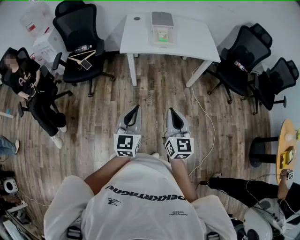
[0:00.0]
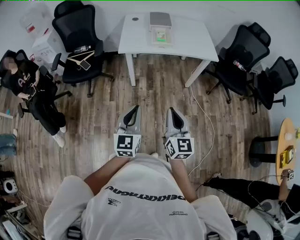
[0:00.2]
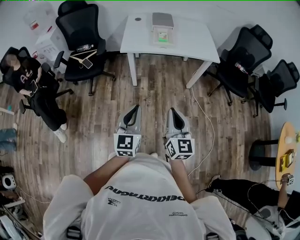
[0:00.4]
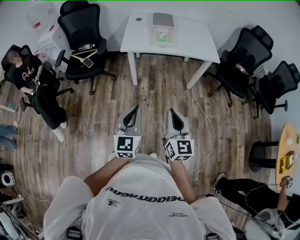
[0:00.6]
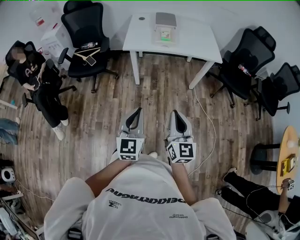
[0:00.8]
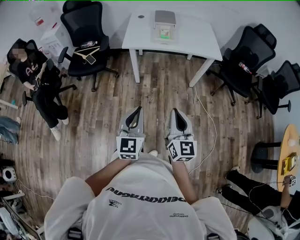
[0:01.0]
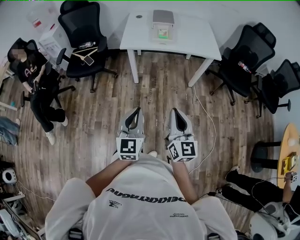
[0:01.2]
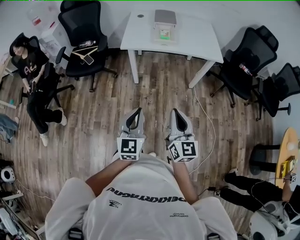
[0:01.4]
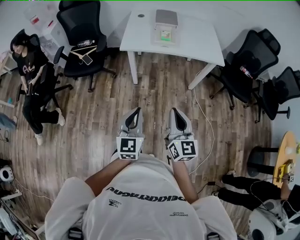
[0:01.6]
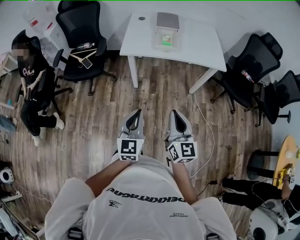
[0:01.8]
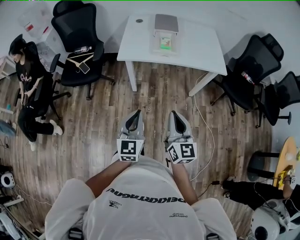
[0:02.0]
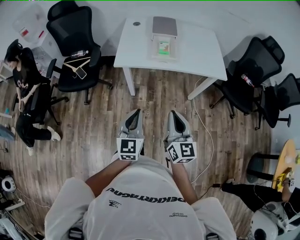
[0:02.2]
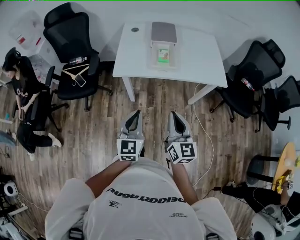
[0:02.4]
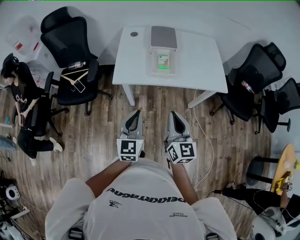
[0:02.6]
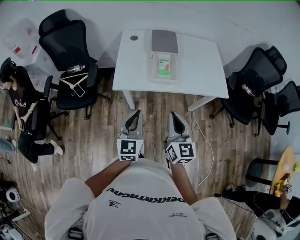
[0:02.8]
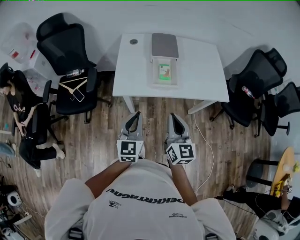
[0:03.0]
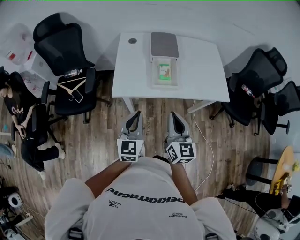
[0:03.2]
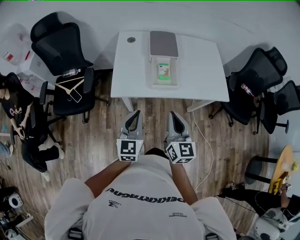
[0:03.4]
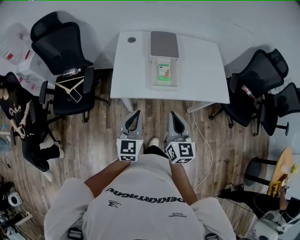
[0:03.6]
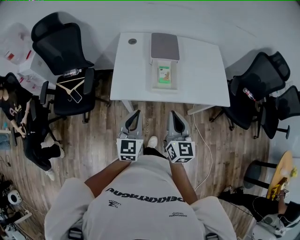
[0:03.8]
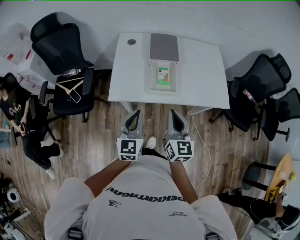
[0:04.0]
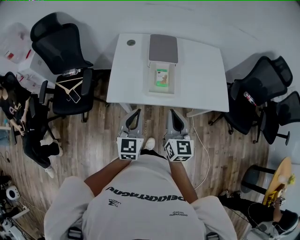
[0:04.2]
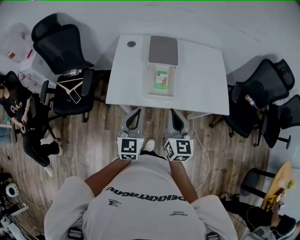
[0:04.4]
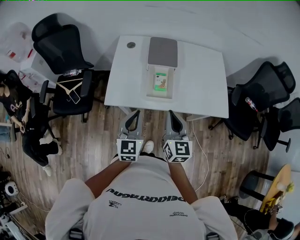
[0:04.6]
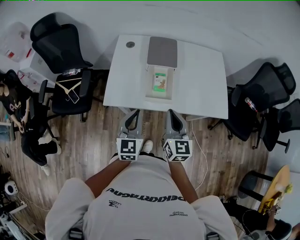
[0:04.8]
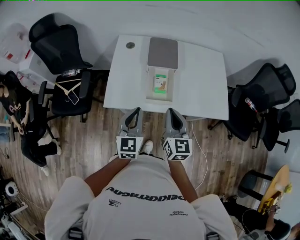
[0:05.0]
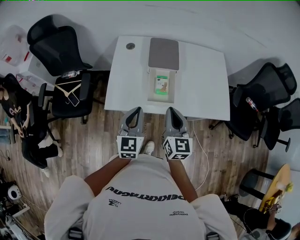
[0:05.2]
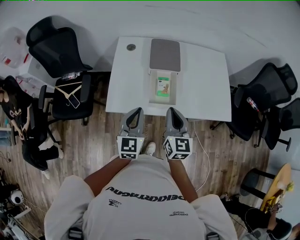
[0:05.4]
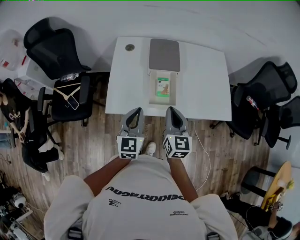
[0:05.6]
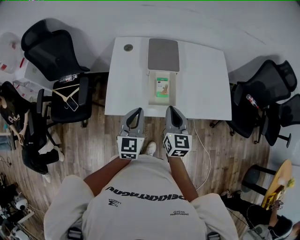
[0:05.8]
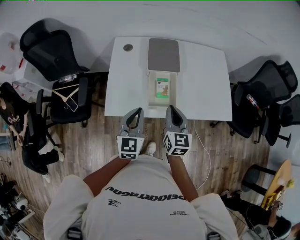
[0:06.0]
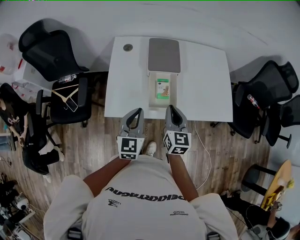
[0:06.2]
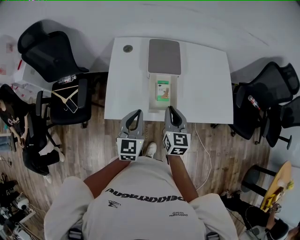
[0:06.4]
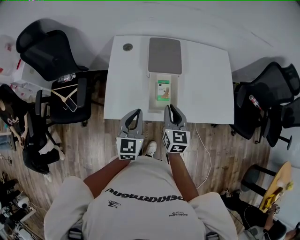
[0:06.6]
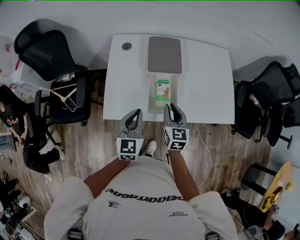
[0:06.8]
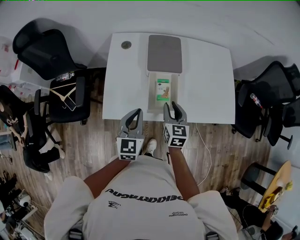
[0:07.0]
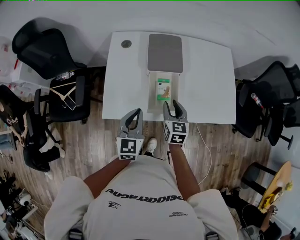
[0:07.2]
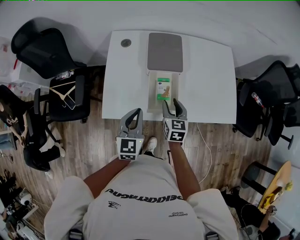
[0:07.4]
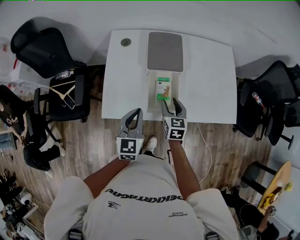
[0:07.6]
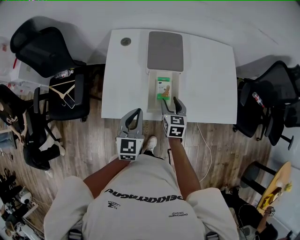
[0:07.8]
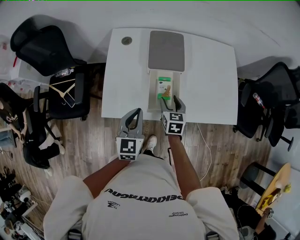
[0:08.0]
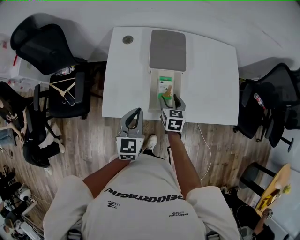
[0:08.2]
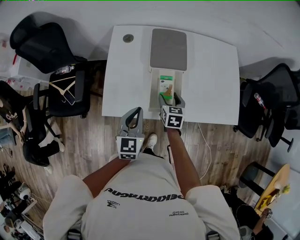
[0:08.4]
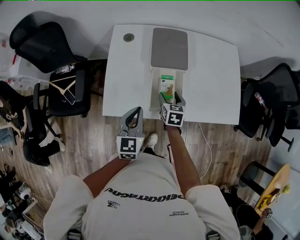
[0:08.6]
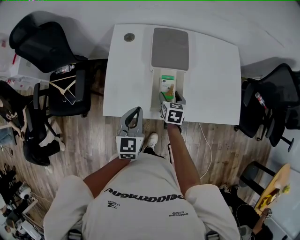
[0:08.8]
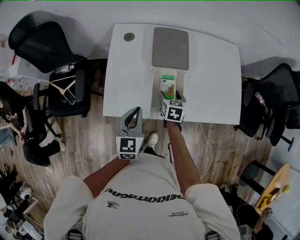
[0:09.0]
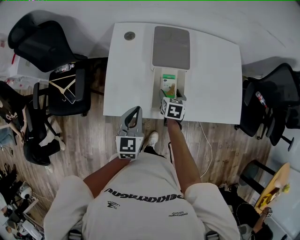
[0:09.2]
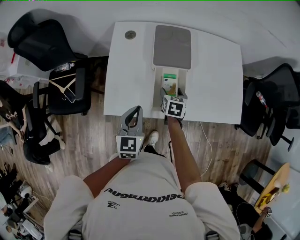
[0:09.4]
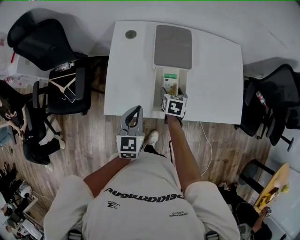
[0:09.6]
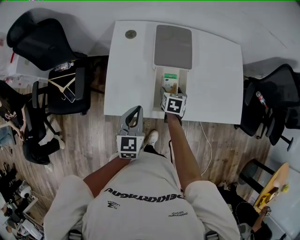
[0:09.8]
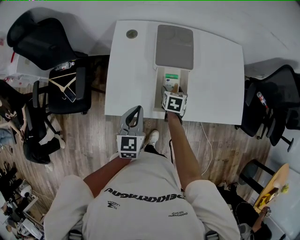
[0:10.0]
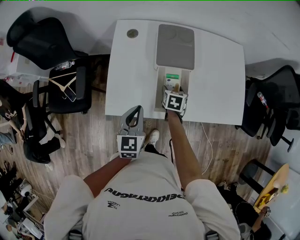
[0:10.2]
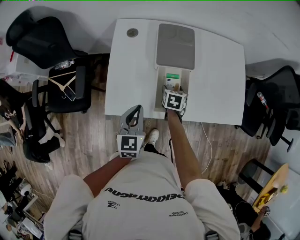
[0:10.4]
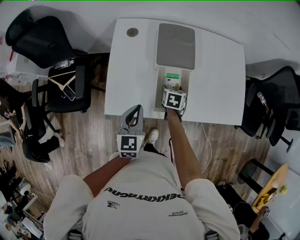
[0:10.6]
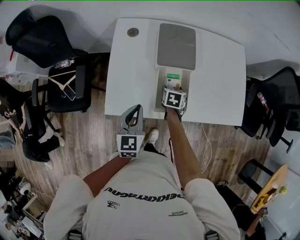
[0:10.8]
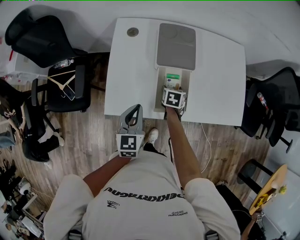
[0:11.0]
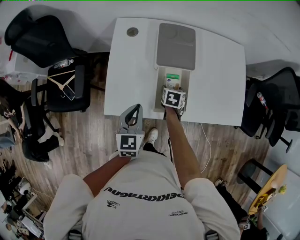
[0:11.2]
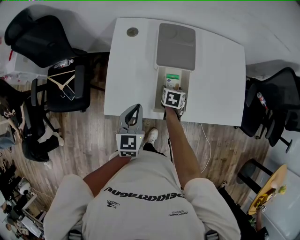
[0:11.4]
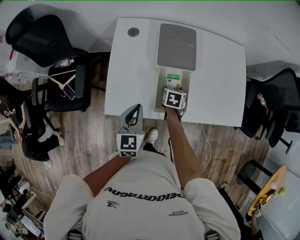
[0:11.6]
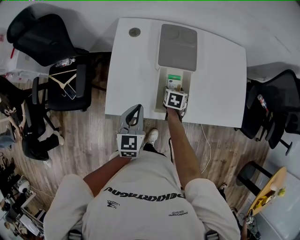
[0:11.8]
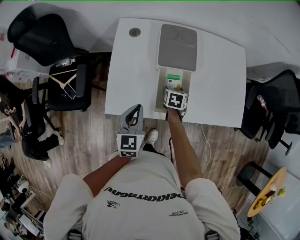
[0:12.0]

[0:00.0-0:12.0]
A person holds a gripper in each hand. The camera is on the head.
0:00.0 to 0:01.6: The left gripper shifts by approximately 5 cm, while the right gripper travels to the right by approximately 5 cm.
0:01.6 to 0:03.0: Both grippers travel together forward, roughly 35 cm.
0:03.0 to 0:04.4: The two grippers go some 10 cm forward.
0:04.4 to 0:06.0: Both grippers travel together forward, approximately 10 cm.
0:06.0 to 0:07.6: The right gripper shifts about 15 cm downward and forward, and opens up, while the left gripper moves about 5 cm.
0:07.6 to 0:09.0: The right gripper moves downward, approximately 5 cm, and opens.
0:09.0 to 0:10.4: There are only small adjustments of the grippers.
0:10.4 to 0:12.0: The grippers stay close to where they were, moving slightly.

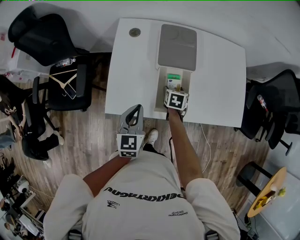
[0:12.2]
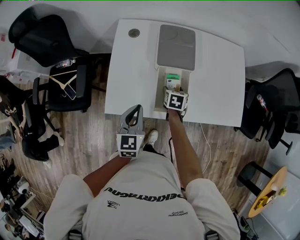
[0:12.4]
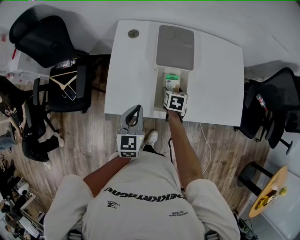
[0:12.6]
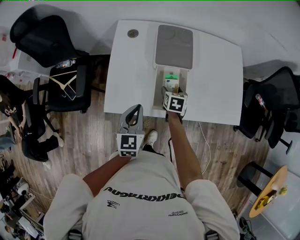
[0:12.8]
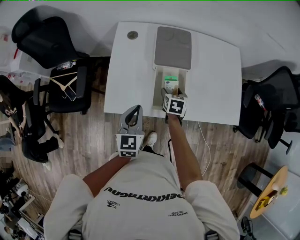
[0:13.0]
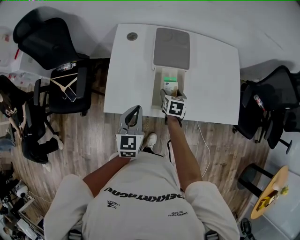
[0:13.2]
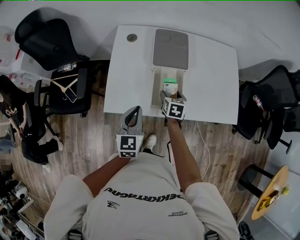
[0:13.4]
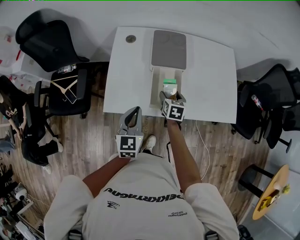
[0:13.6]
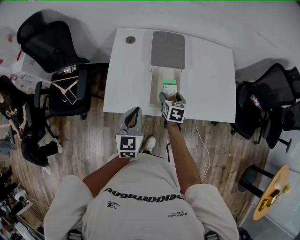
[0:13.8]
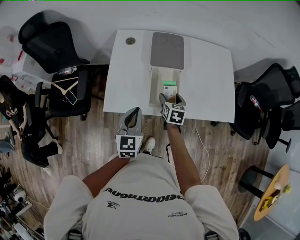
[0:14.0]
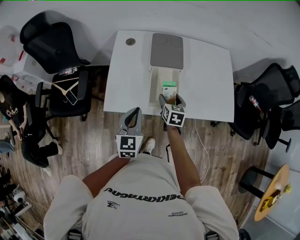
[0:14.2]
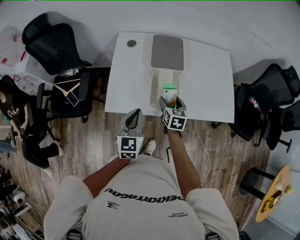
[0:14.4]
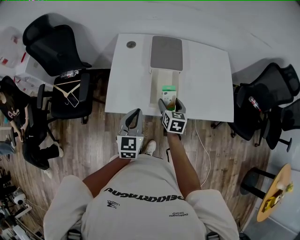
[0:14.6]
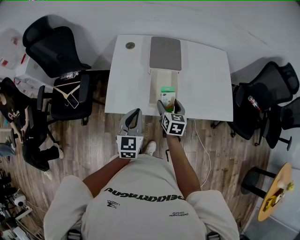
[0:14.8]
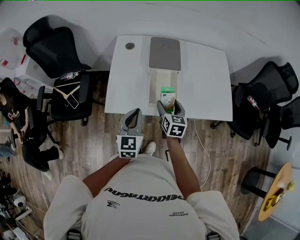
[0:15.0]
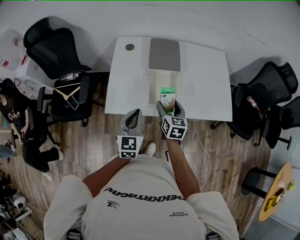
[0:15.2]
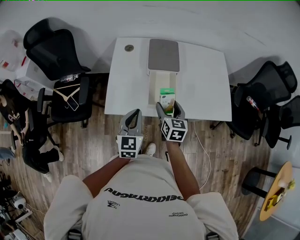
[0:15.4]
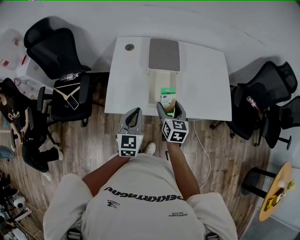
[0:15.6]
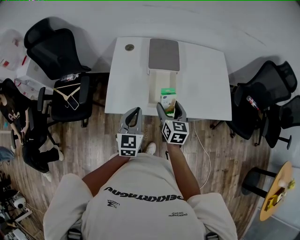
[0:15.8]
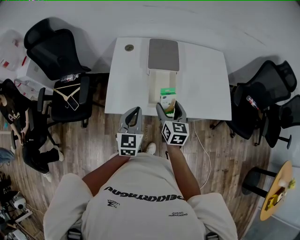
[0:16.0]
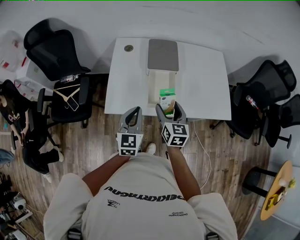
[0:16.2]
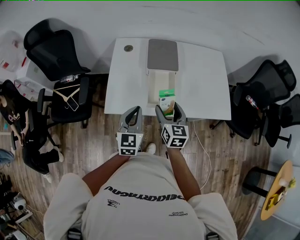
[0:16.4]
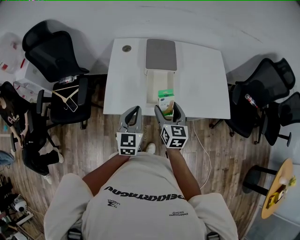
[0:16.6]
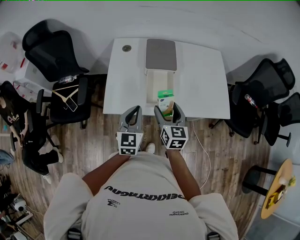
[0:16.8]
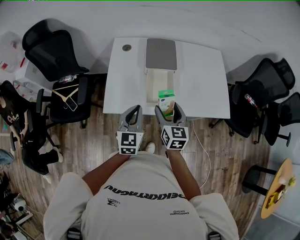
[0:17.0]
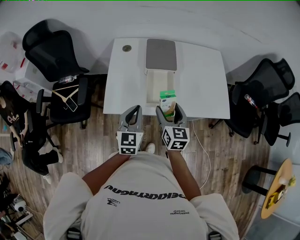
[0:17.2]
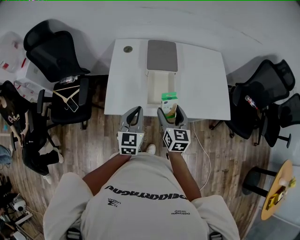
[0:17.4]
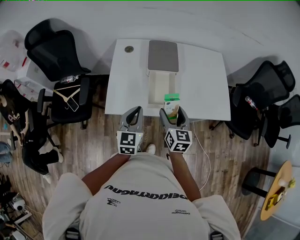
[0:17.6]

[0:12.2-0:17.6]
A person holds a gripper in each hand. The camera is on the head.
0:12.2 to 0:13.6: The left gripper shifts by roughly 5 cm. Meanwhile the right gripper goes some 5 cm upward.
0:13.6 to 0:15.0: The right gripper moves upward and backward, roughly 10 cm.
0:15.0 to 0:16.2: The right gripper moves upward, about 5 cm.
0:16.2 to 0:17.6: There are only small adjustments of the grippers.

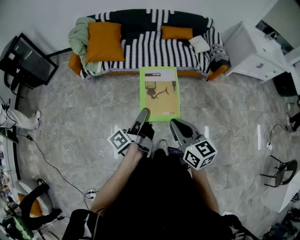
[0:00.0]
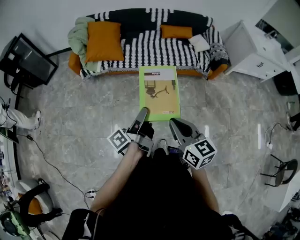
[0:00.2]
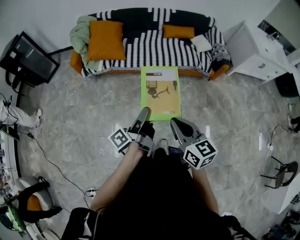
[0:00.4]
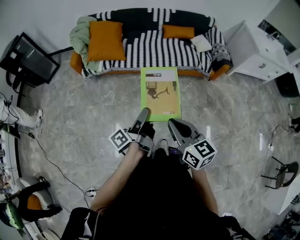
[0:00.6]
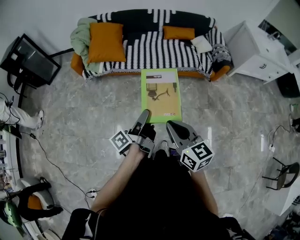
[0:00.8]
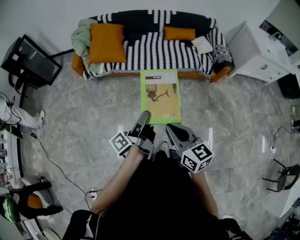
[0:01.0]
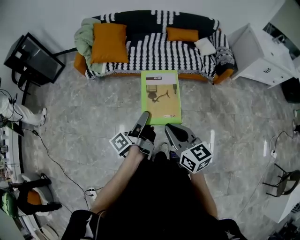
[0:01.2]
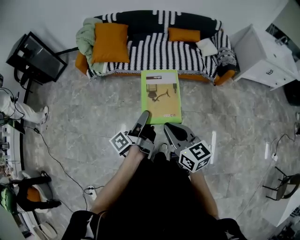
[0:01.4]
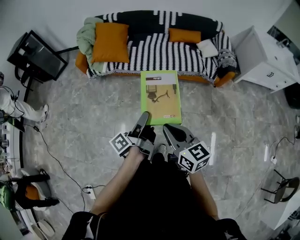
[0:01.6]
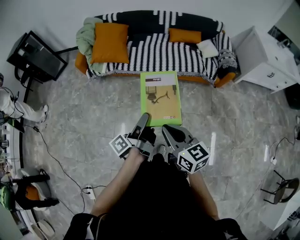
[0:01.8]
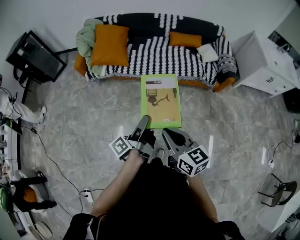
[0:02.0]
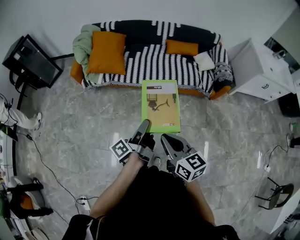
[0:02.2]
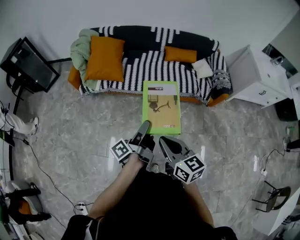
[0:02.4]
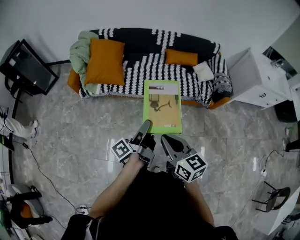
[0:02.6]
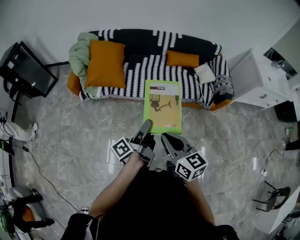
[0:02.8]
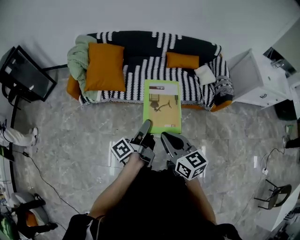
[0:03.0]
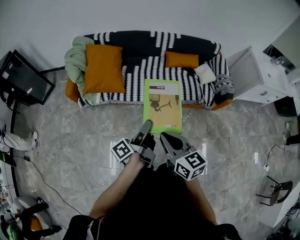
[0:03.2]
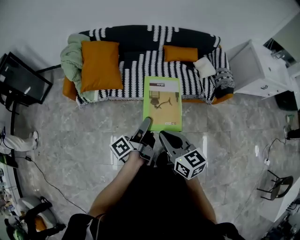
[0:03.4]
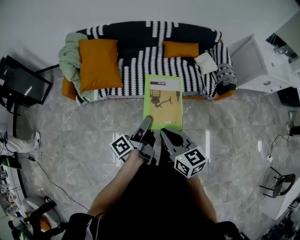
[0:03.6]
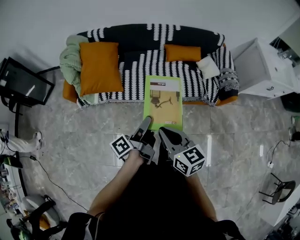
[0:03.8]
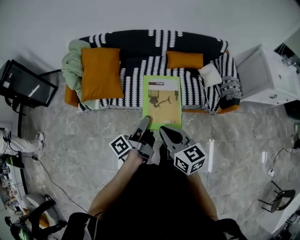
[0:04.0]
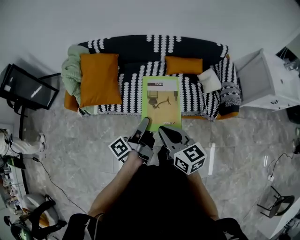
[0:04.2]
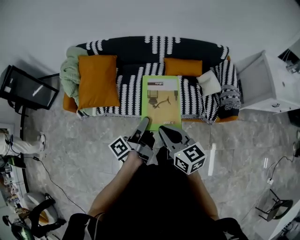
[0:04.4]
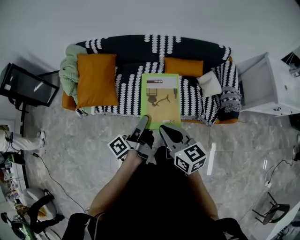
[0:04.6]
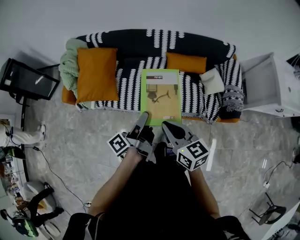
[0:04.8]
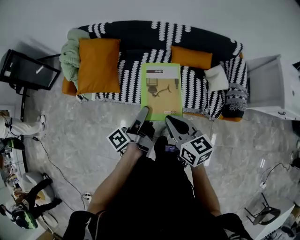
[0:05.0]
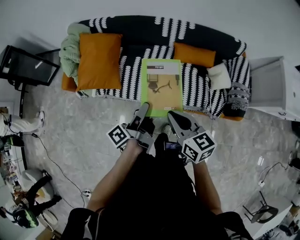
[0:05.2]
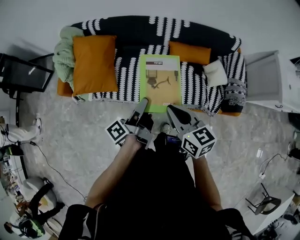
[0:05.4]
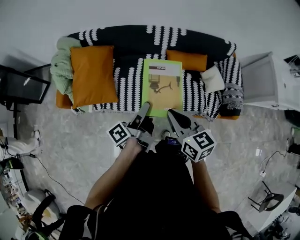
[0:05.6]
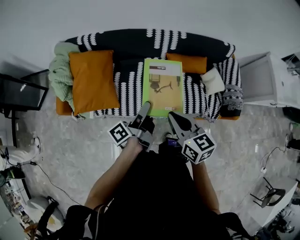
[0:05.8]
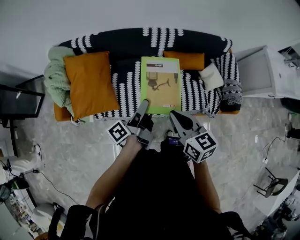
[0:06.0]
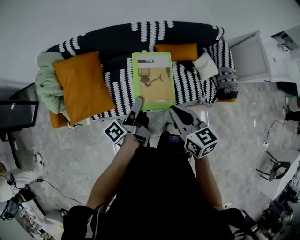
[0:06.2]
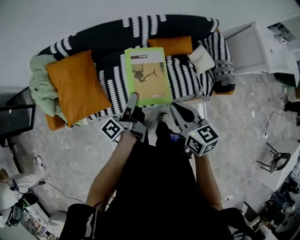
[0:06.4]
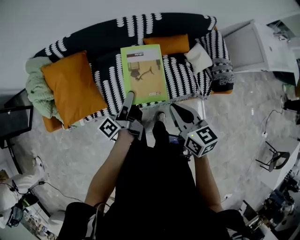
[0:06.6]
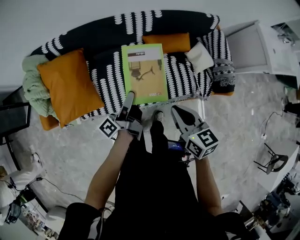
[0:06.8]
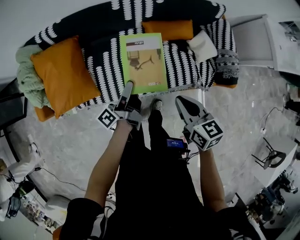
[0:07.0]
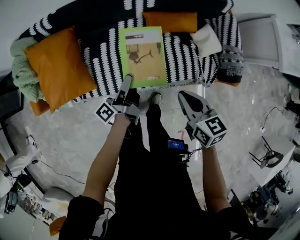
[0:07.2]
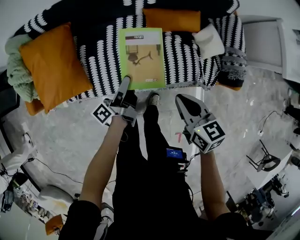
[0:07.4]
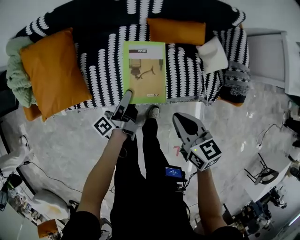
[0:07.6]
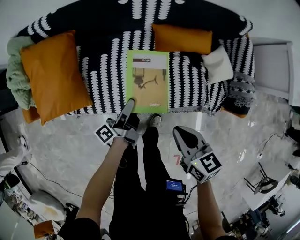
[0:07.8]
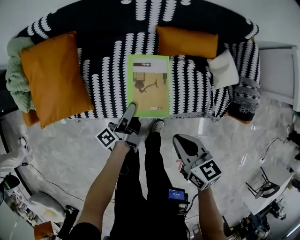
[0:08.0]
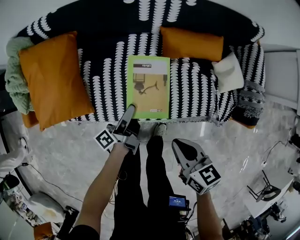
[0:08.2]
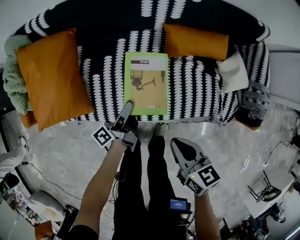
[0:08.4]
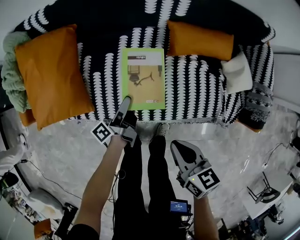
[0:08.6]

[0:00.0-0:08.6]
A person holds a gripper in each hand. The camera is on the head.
0:01.4 to 0:02.8: The right gripper moves roughly 20 cm.
0:02.8 to 0:04.4: The right gripper moves some 25 cm.
0:04.4 to 0:05.8: The right gripper shifts by some 15 cm.
0:05.8 to 0:07.2: The right gripper heads downward, covering roughly 10 cm.
0:07.2 to 0:08.6: The right gripper travels downward by some 15 cm.